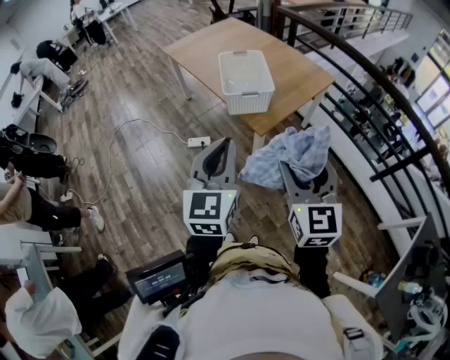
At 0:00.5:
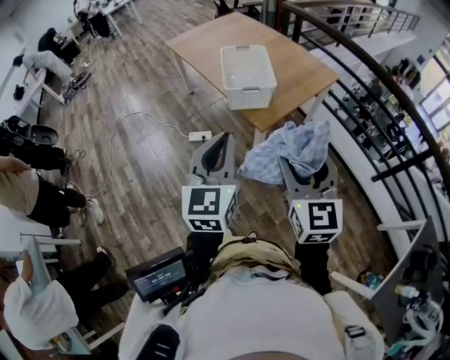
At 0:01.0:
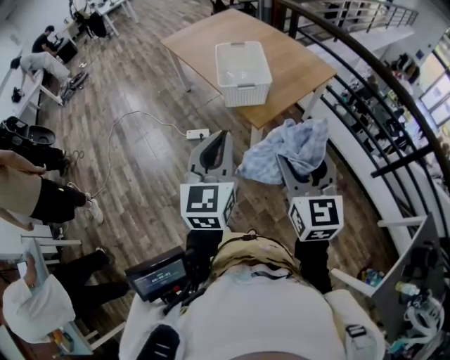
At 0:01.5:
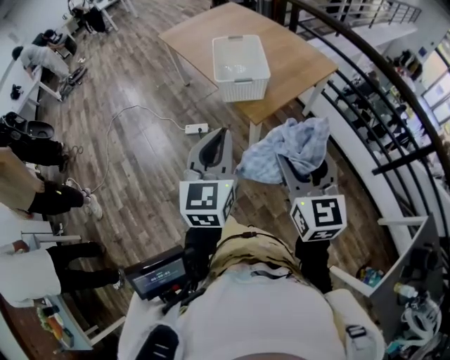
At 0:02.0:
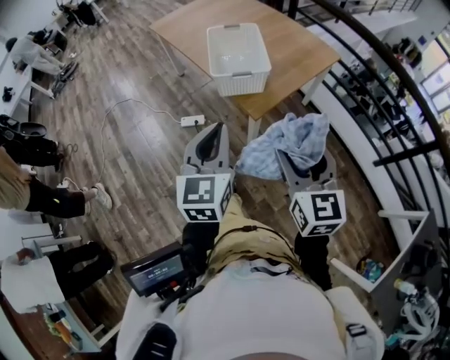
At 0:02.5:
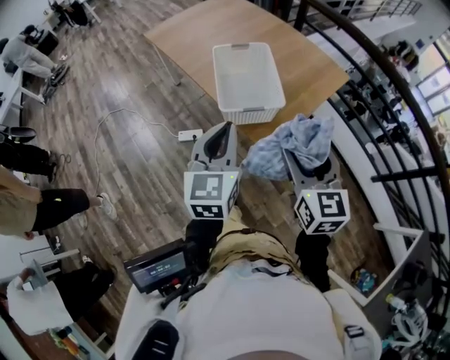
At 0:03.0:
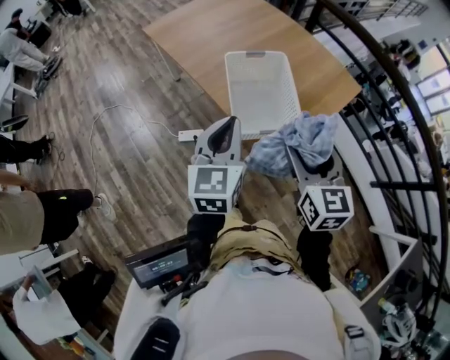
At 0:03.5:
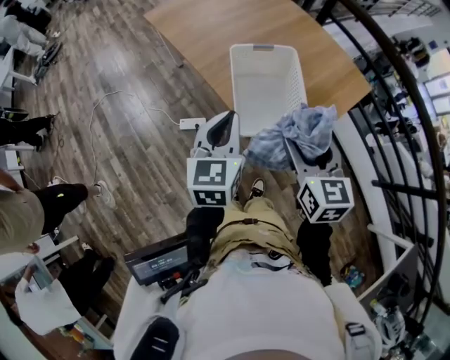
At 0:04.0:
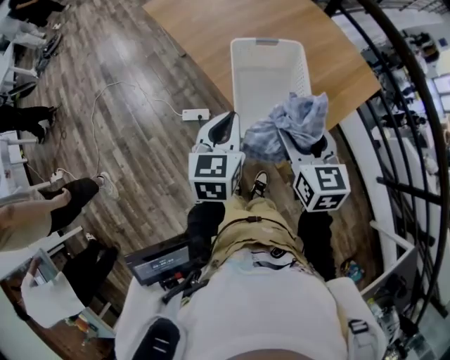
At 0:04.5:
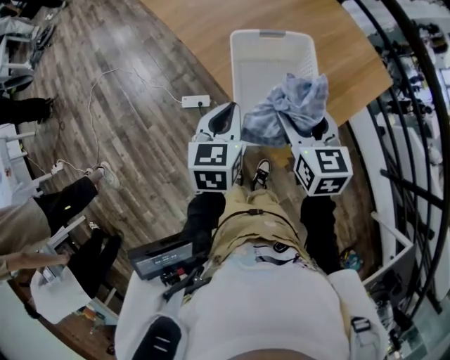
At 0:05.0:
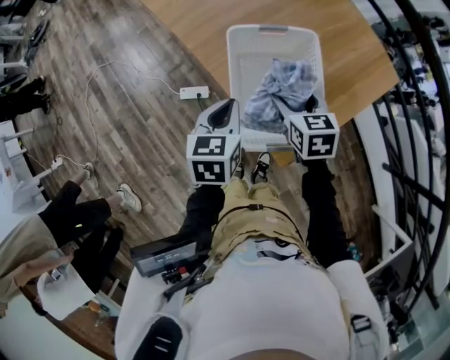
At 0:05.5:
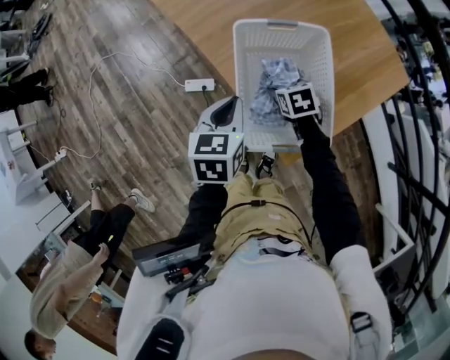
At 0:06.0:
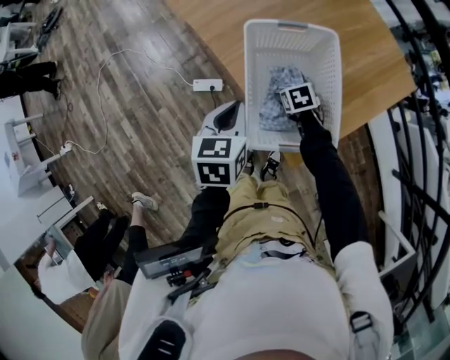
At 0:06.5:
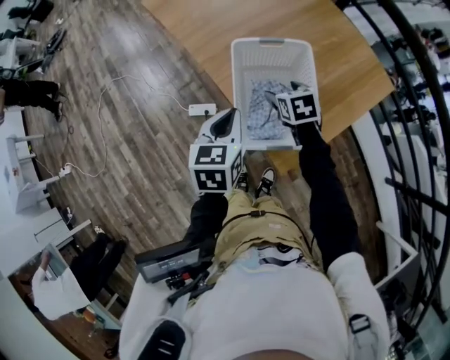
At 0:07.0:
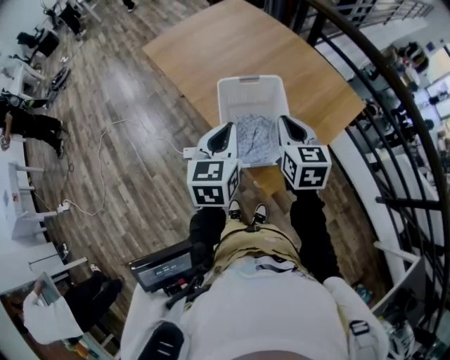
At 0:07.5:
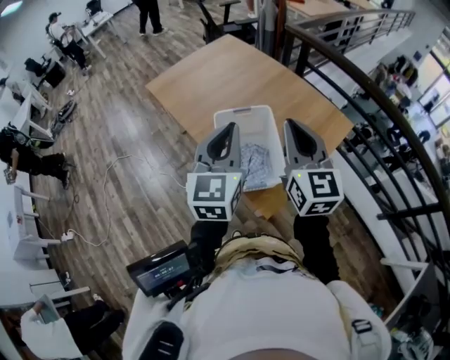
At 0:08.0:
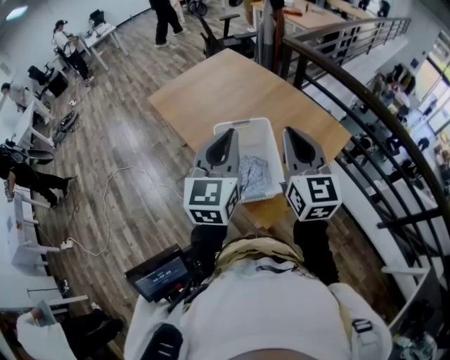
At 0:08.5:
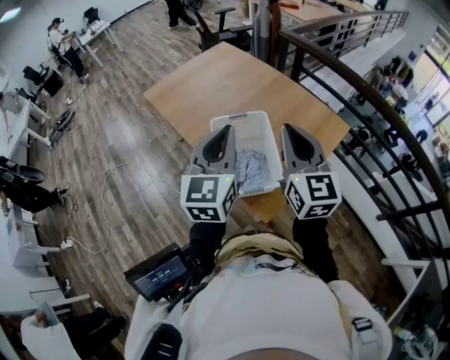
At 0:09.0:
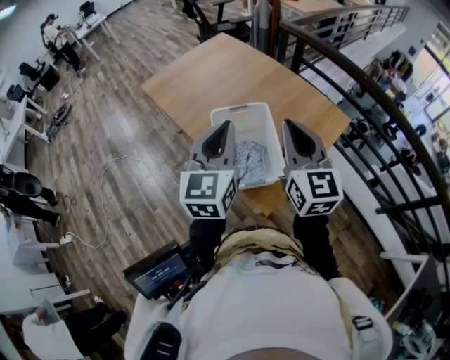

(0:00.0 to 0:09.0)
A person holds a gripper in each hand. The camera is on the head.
0:00.0 - 0:02.0: The grippers both shift forward and downward by some 10 cm.
0:02.0 - 0:04.5: The pair of grippers is taken forward, approximately 40 cm. The left gripper rotates roughly 30 degrees, while the right gripper changes its angle by some 20 degrees.
0:04.5 - 0:07.0: The right gripper travels downward and back again, roughly 30 cm each way, and closes up. Meanwhile the left gripper is displaced upward by roughly 10 cm.
0:07.0 - 0:09.0: The two grippers go about 15 cm upward. The left gripper turns by approximately 20 degrees. The right gripper swivels approximately 30 degrees.

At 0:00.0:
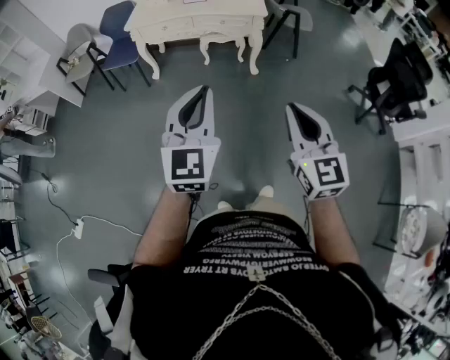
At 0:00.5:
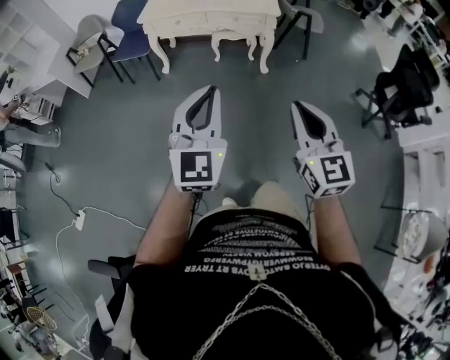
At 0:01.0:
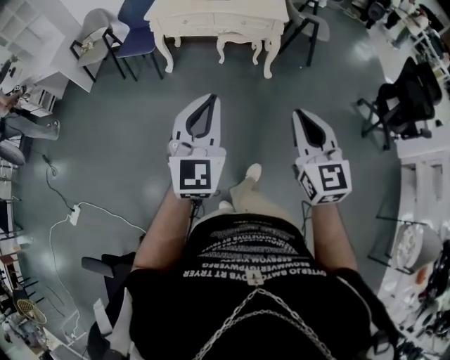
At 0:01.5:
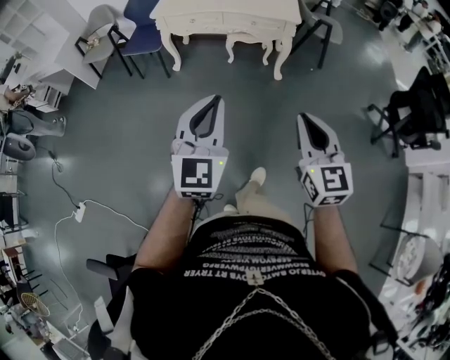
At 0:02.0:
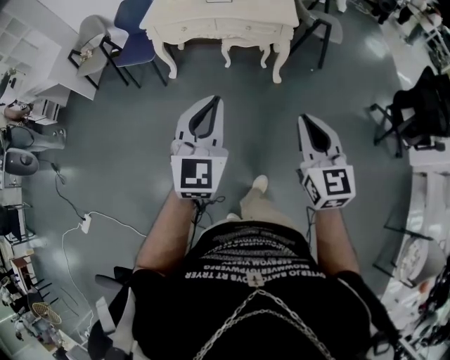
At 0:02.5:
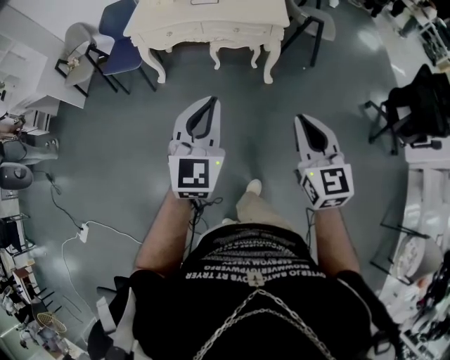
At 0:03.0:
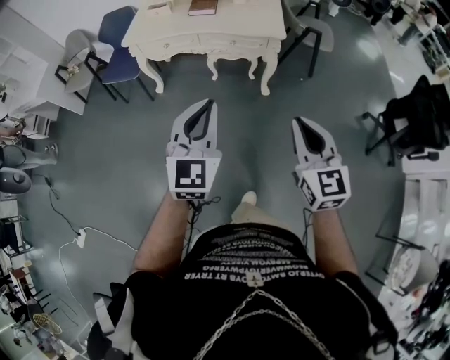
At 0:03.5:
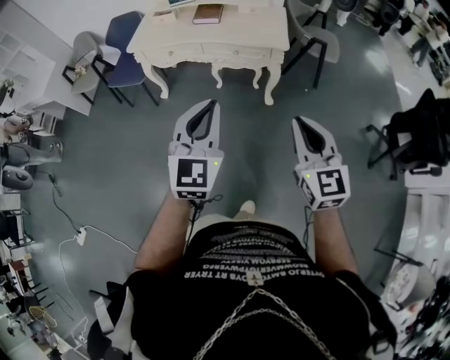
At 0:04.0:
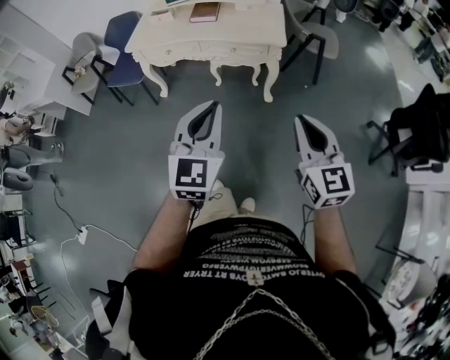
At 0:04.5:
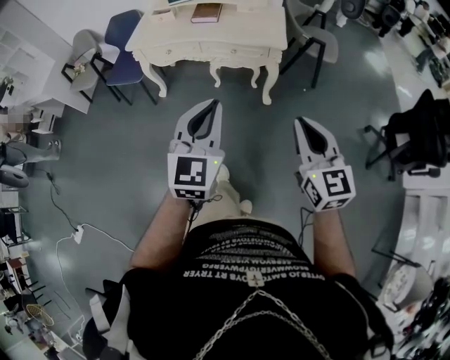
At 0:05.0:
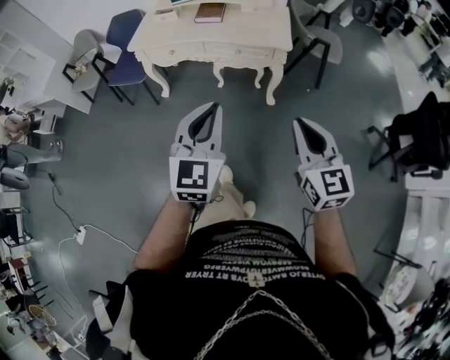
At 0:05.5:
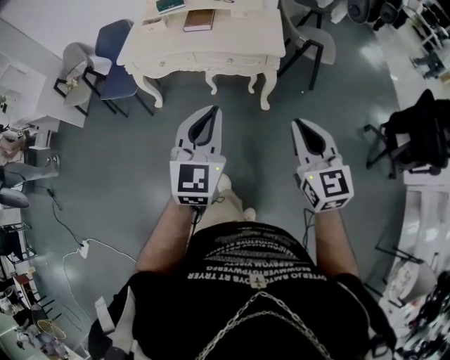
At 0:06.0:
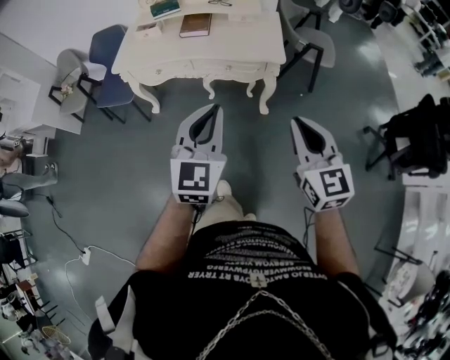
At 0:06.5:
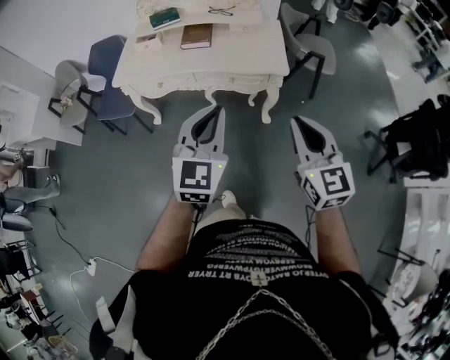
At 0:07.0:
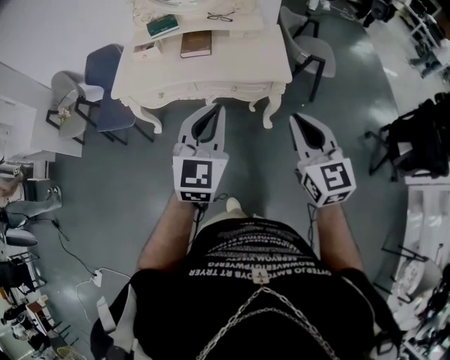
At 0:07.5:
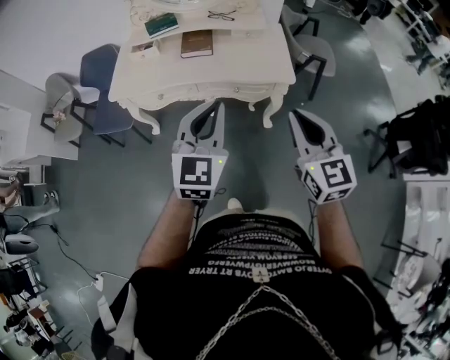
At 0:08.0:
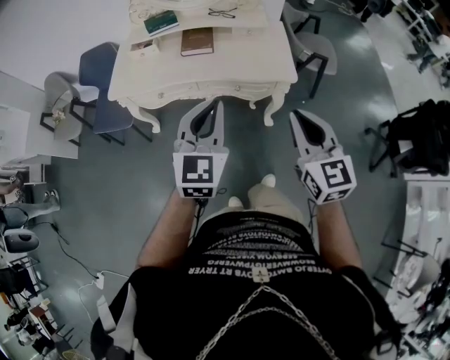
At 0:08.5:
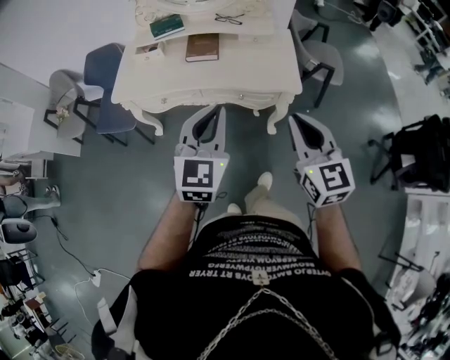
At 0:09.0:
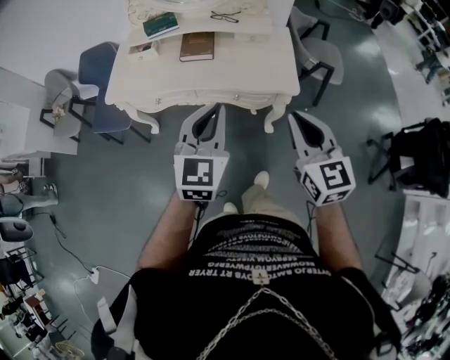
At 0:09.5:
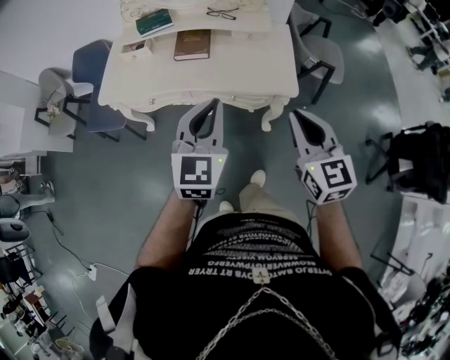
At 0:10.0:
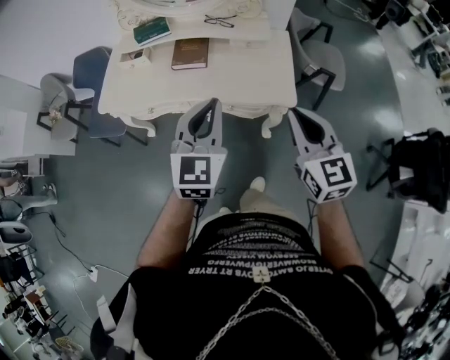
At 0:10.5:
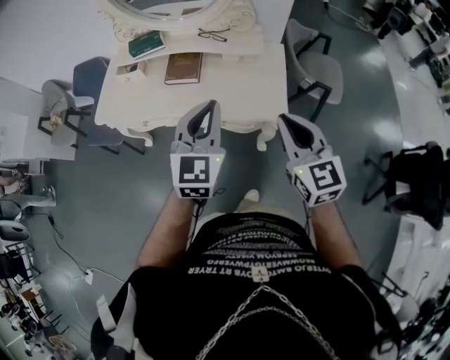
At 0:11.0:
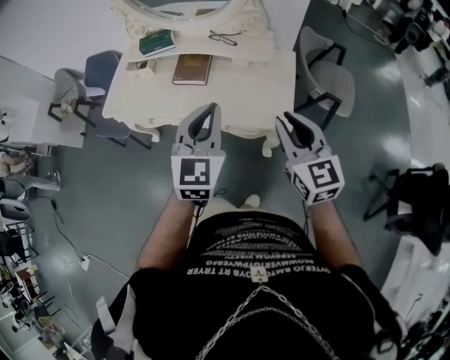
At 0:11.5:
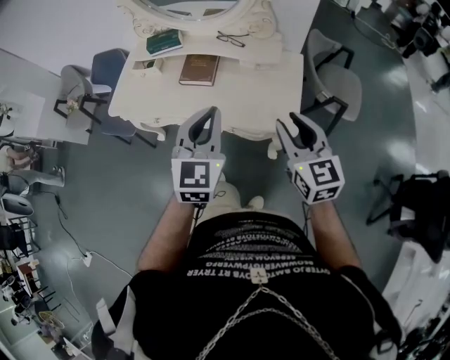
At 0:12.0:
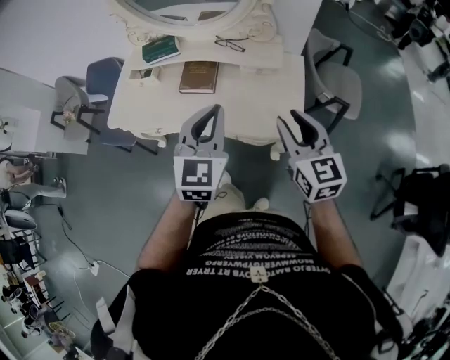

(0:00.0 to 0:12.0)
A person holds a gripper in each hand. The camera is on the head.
0:00.0 - 0:02.0: Both grippers travel together forward, roughly 15 cm.
0:02.0 - 0:04.0: Both grippers move forward and to the right, some 20 cm.
0:04.0 - 0:06.0: The grippers both shift forward by about 15 cm.
0:06.0 - 0:08.0: The grippers both shift forward and to the left by roughly 20 cm.
0:08.0 - 0:10.0: Both grippers travel together forward and to the right, some 15 cm.
0:10.0 - 0:12.0: Both grippers travel together forward, roughly 15 cm. The right gripper opens its fingers.

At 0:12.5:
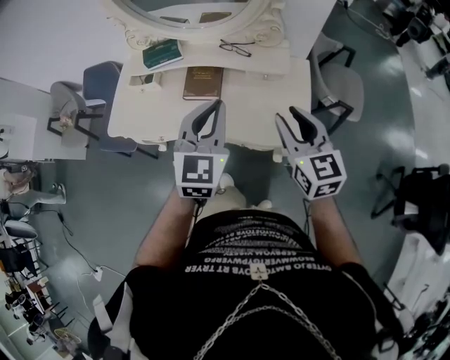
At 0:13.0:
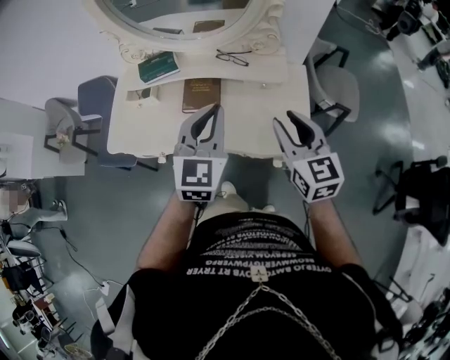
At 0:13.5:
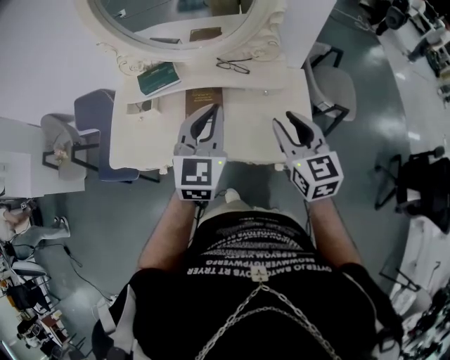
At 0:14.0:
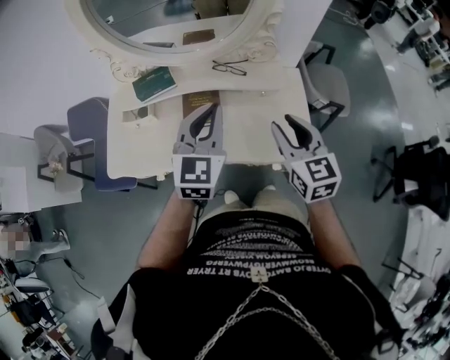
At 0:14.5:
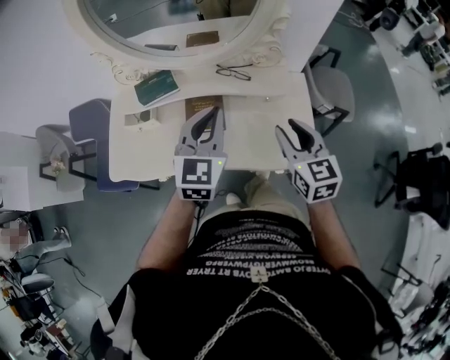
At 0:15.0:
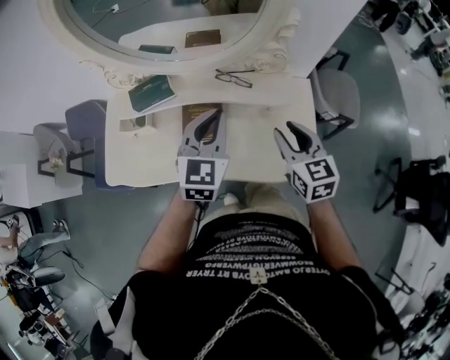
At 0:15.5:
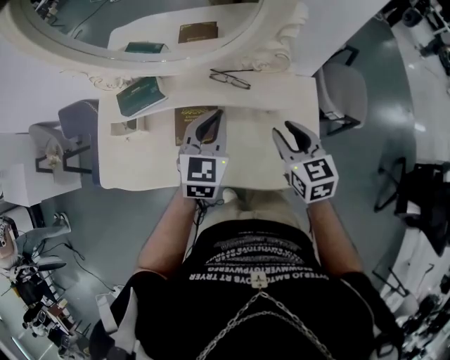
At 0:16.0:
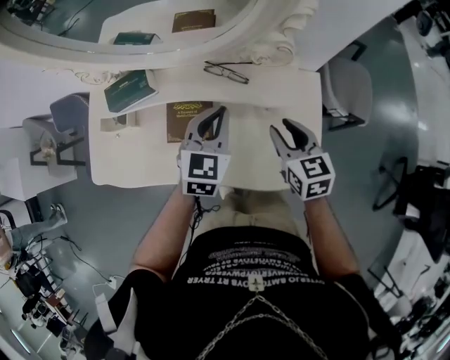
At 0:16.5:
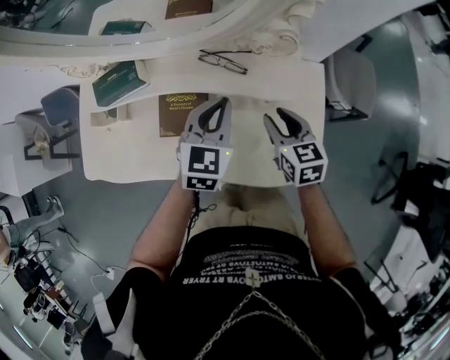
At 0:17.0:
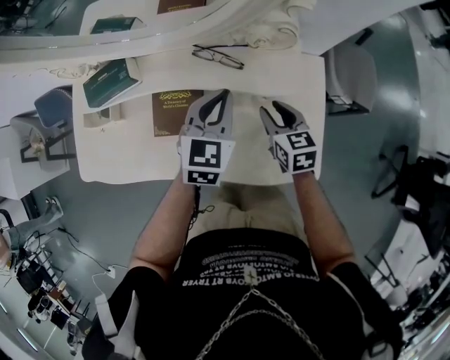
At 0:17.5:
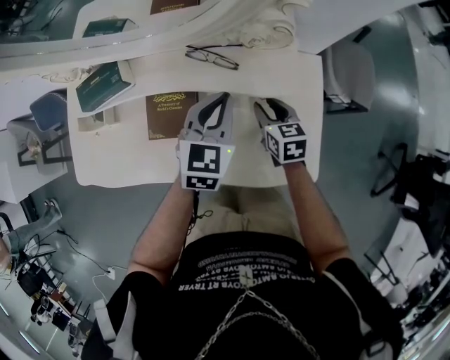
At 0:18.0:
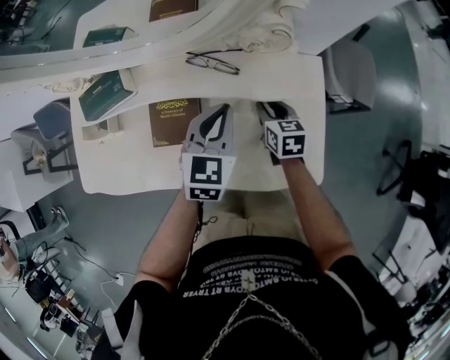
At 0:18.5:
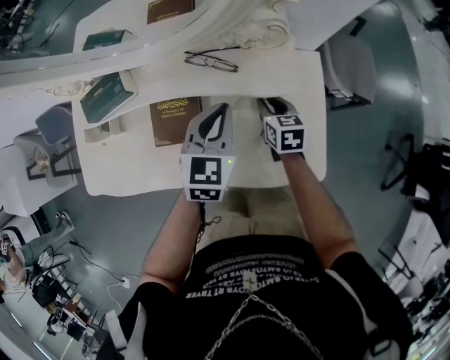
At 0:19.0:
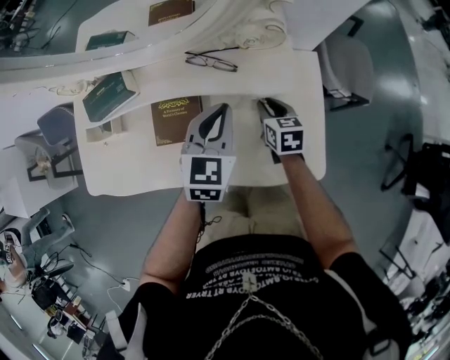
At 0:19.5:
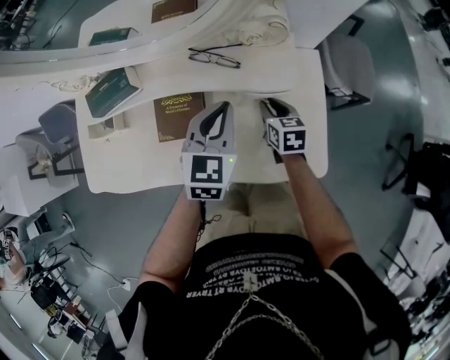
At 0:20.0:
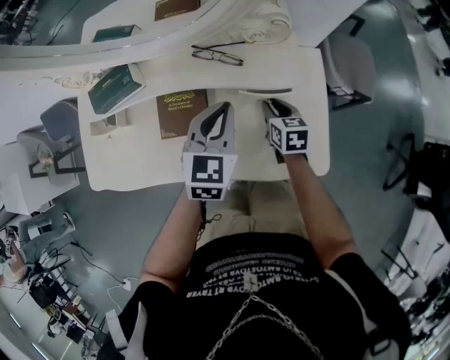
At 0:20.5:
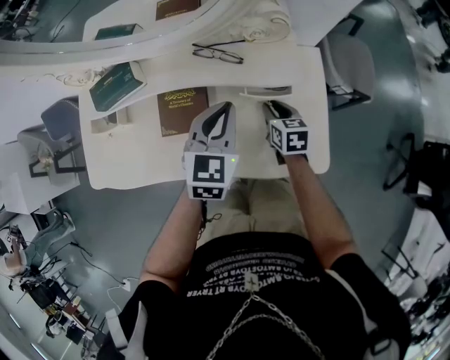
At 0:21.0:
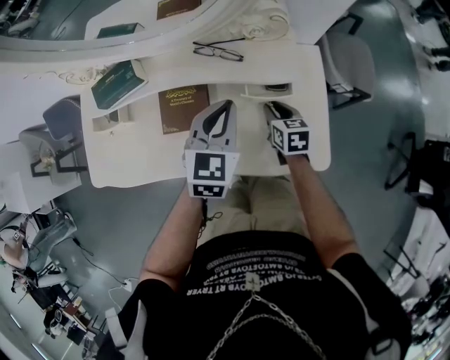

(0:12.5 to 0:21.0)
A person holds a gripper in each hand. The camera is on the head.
0:12.5 - 0:14.5: The right gripper goes approximately 10 cm forward, while the left gripper heads forward and to the left, covering approximately 15 cm.
0:14.5 - 0:16.5: The left gripper travels downward, forward and to the right by roughly 25 cm, while the right gripper heads downward and forward, covering about 25 cm.
0:16.5 - 0:19.0: The right gripper goes roughly 10 cm downward.
0:19.0 - 0:21.0: The grippers make only small movements.
